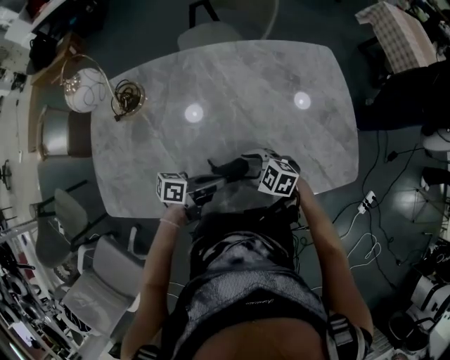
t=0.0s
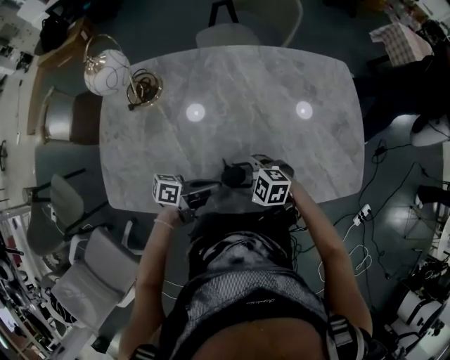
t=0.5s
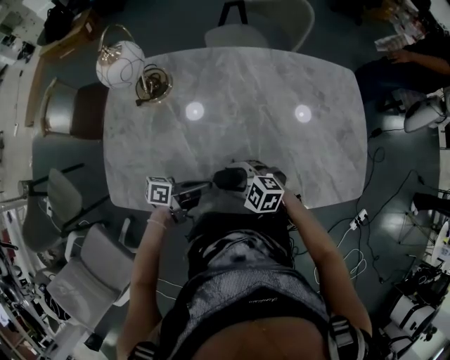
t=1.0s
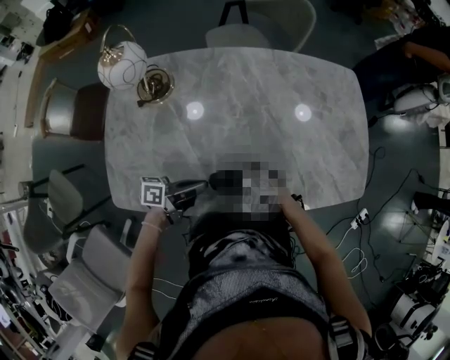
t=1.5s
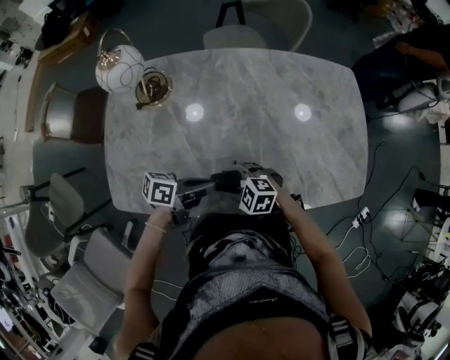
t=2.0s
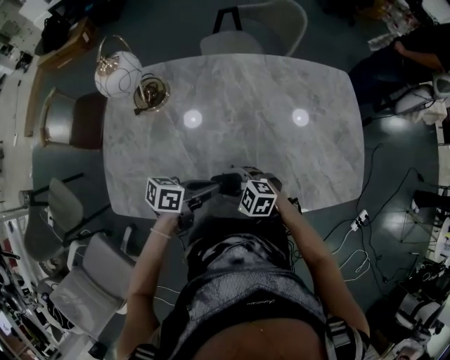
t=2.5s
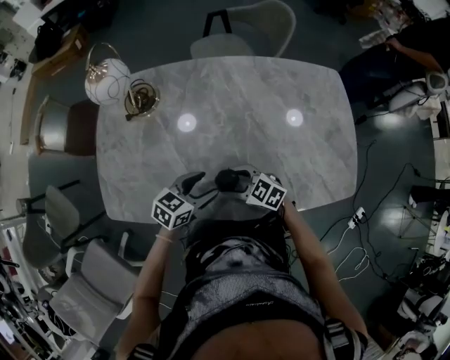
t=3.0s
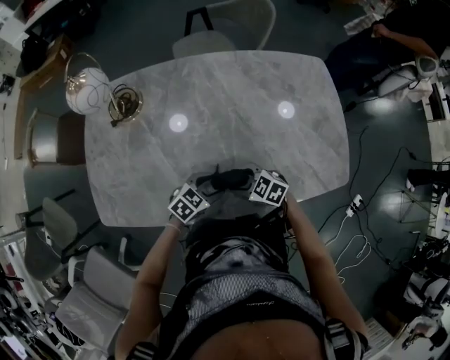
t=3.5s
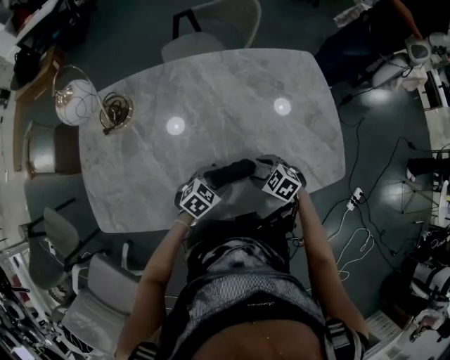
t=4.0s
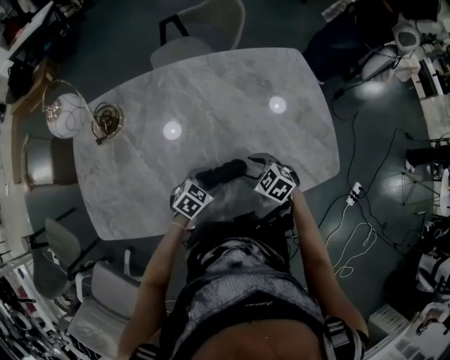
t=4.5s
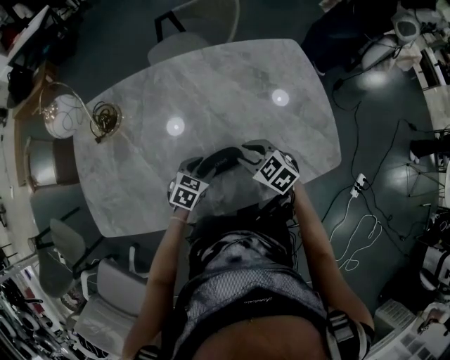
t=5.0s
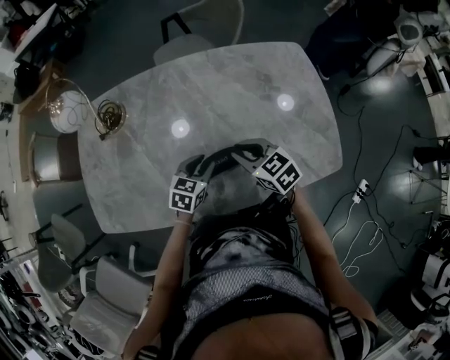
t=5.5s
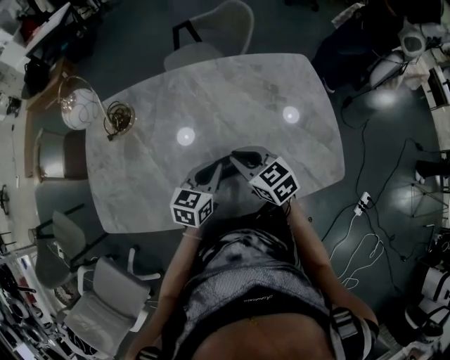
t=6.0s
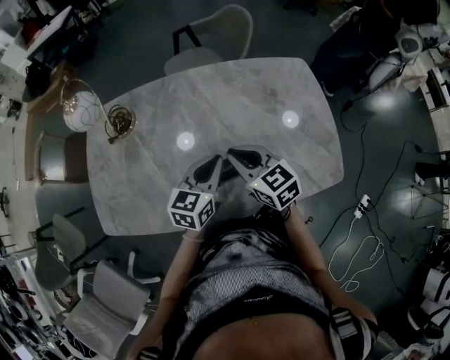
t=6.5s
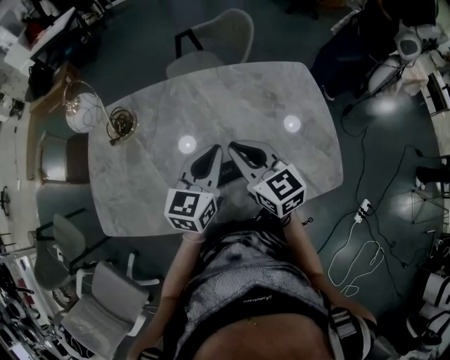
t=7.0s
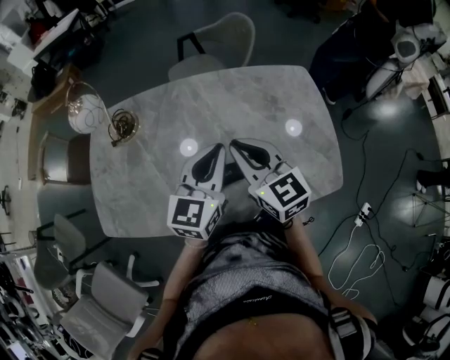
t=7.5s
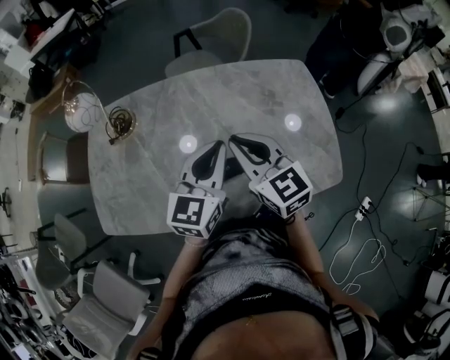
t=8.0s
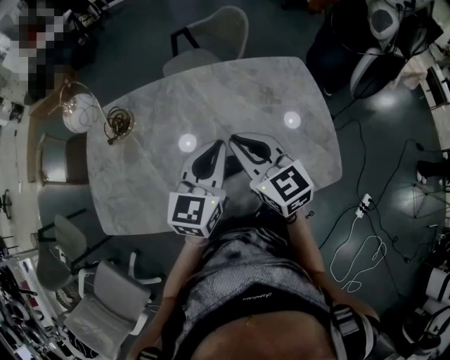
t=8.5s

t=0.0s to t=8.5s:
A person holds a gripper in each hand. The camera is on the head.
t=0.0s to t=2.0s: The left gripper moves approximately 10 cm. The right gripper changes place by about 15 cm.
t=2.0s to t=4.0s: The left gripper moves some 15 cm, rolls clockwise, seen from behind, by about 50 degrees, and opens. Meanwhile the right gripper changes place by about 20 cm, and changes its angle by approximately 30 degrees.
t=4.0s to t=6.5s: Both grippers move upward, some 20 cm. The right gripper tilts its fingers roughly 30 degrees upward, and closes its fingers. Meanwhile the left gripper turns by approximately 40 degrees, and closes its fingers.
t=6.5s to t=8.5s: Both grippers move upward, about 10 cm.

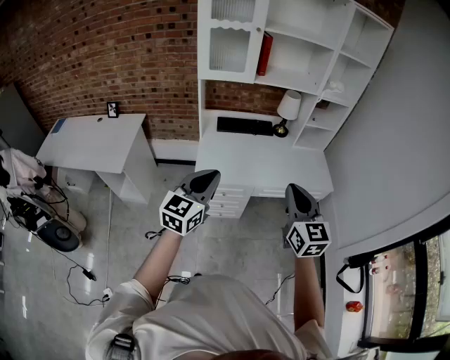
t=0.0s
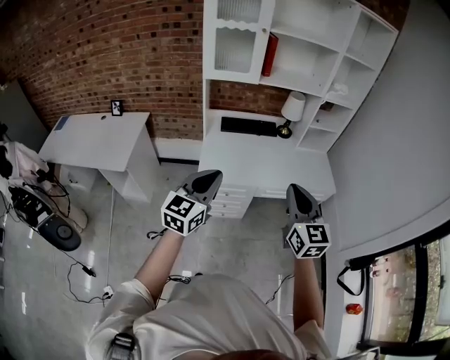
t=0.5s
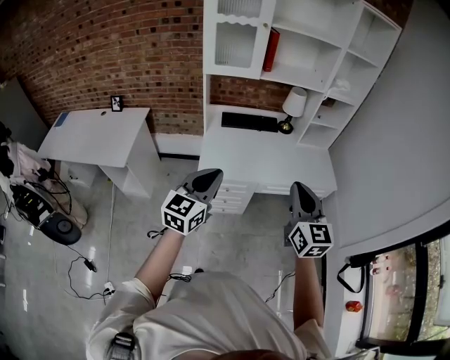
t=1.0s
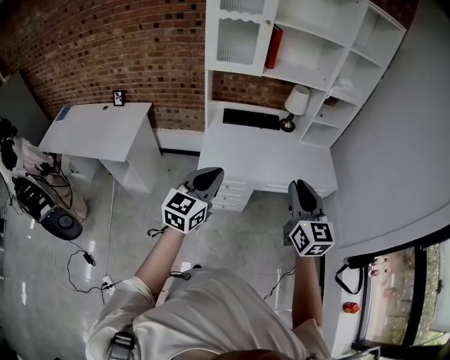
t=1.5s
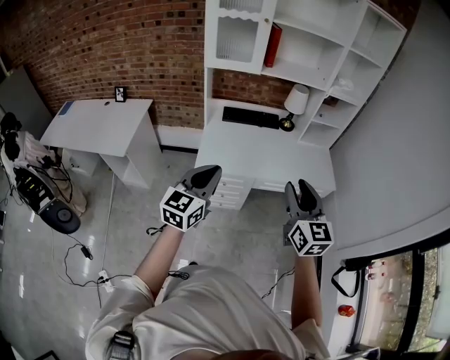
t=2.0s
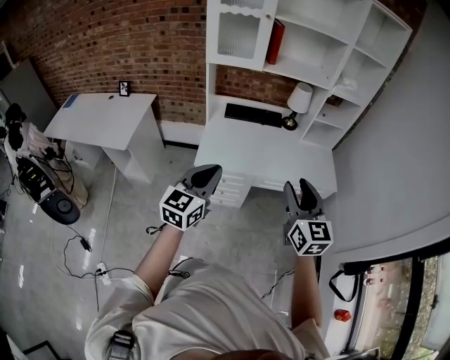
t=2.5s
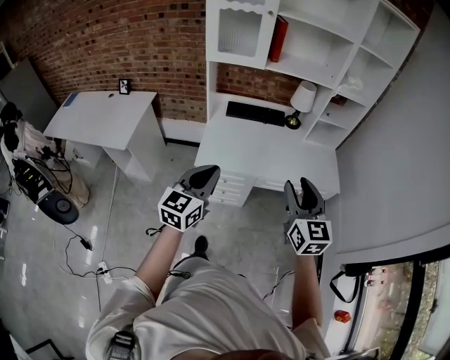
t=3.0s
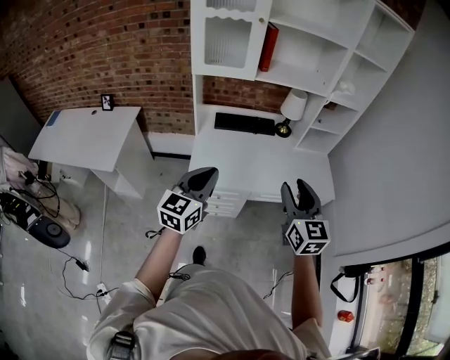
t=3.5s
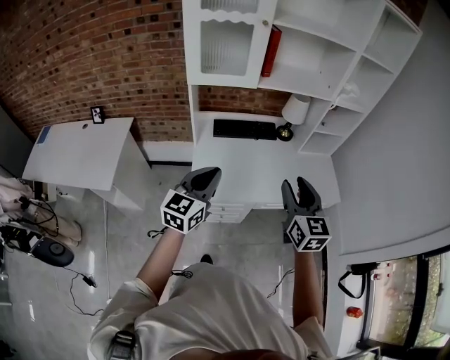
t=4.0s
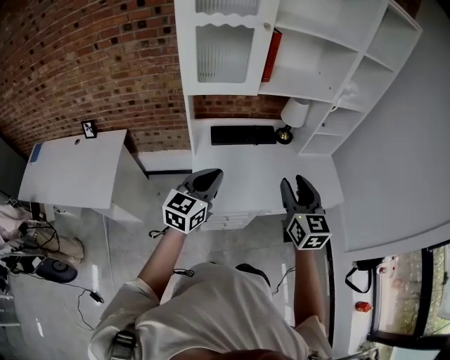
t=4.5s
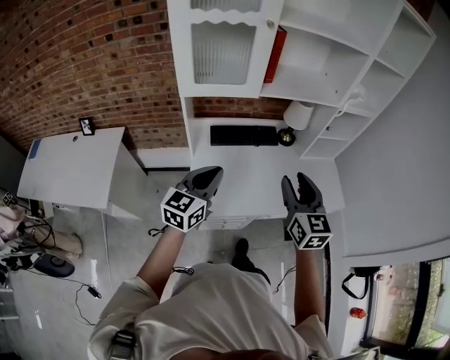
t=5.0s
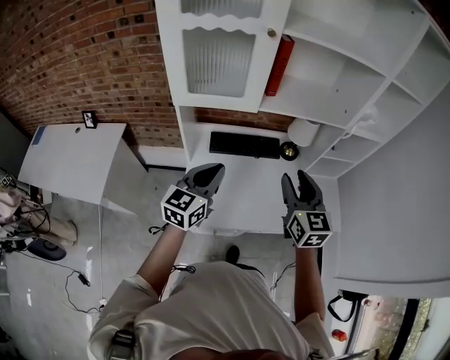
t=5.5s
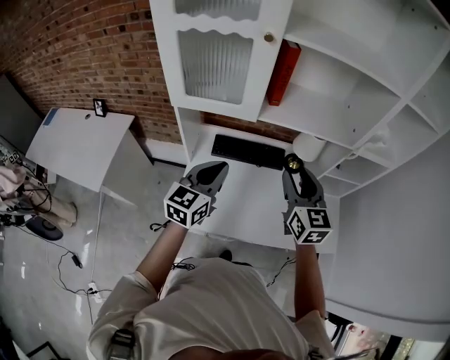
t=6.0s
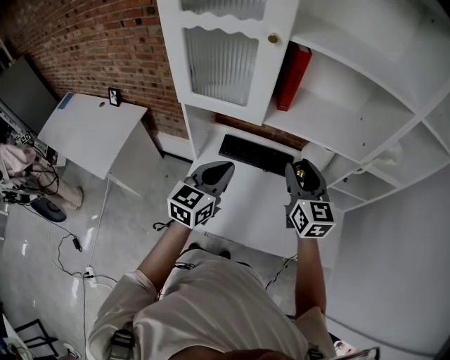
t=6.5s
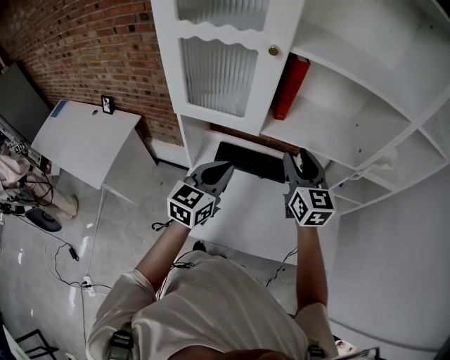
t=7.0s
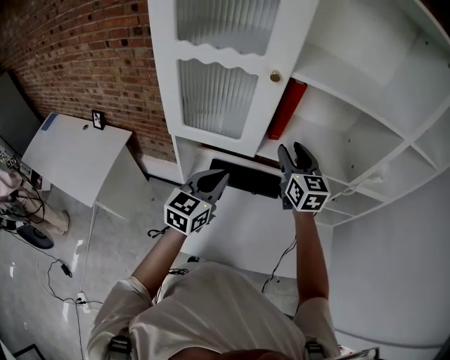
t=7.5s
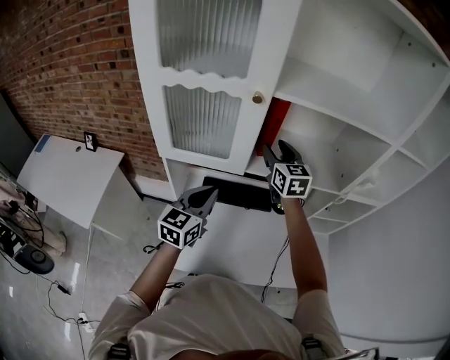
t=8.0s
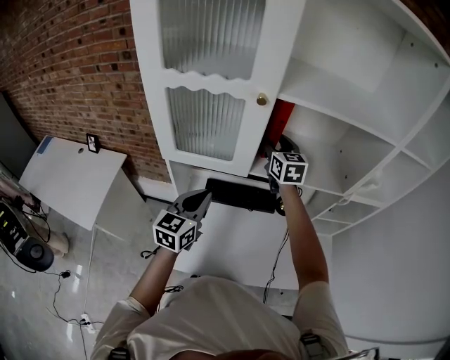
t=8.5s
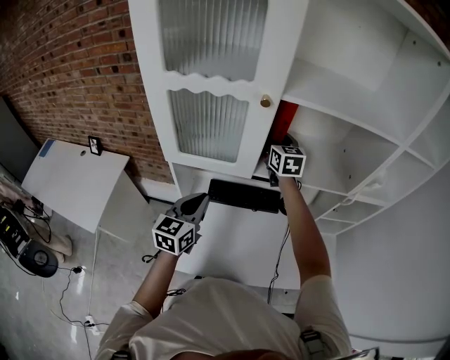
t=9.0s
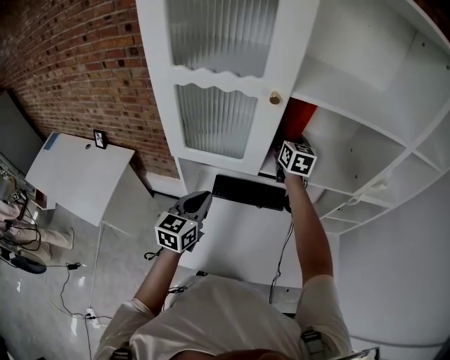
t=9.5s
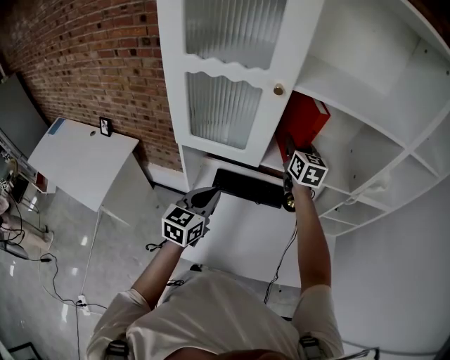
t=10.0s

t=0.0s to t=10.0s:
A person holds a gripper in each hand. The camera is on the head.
t=0.0s to t=2.0s: The right gripper opens its fingers.
t=2.0s to t=4.0s: The two grippers go some 20 cm forward.
t=4.0s to t=6.0s: The two grippers go roughly 30 cm forward.
t=6.0s to t=8.0s: The right gripper heads forward, covering approximately 25 cm. The left gripper heads forward, covering about 10 cm.
t=8.0s to t=10.0s: The right gripper moves approximately 10 cm forward and comes back.

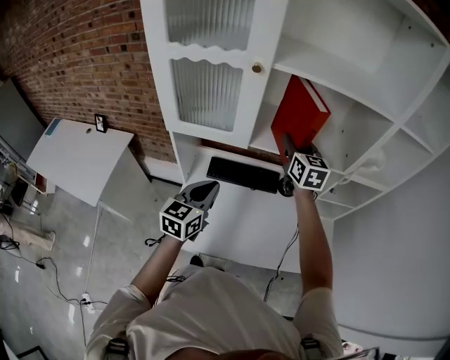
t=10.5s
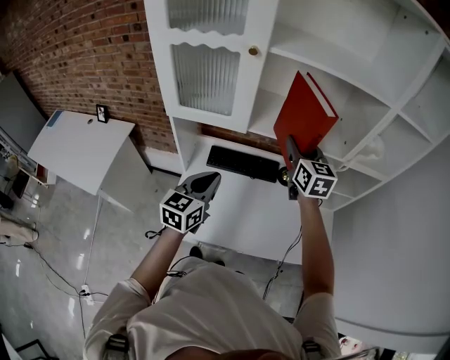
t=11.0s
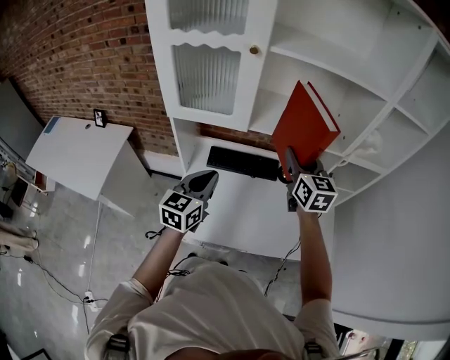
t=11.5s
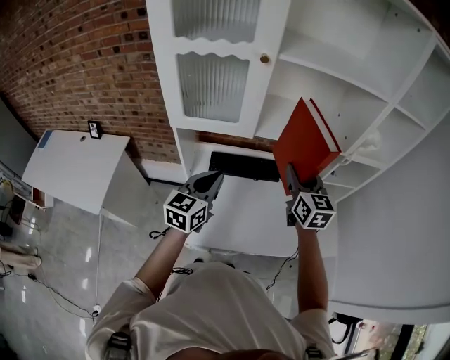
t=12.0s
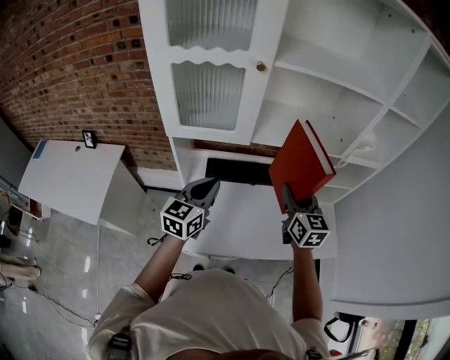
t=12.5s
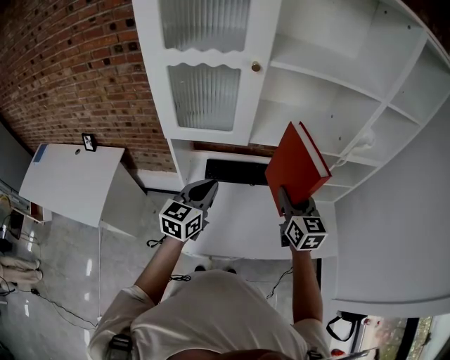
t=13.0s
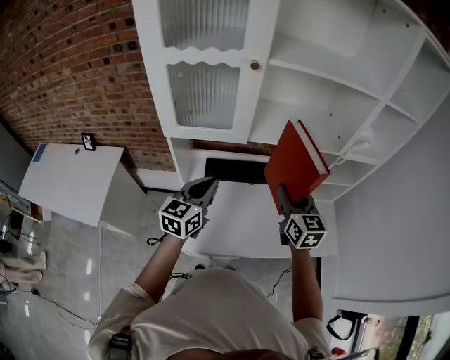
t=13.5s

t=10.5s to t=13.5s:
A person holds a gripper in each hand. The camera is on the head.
t=10.5s to t=12.0s: The right gripper travels backward by roughly 15 cm.
t=12.0s to t=13.5s: The right gripper moves some 5 cm.

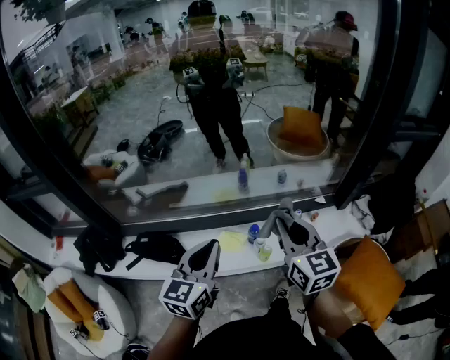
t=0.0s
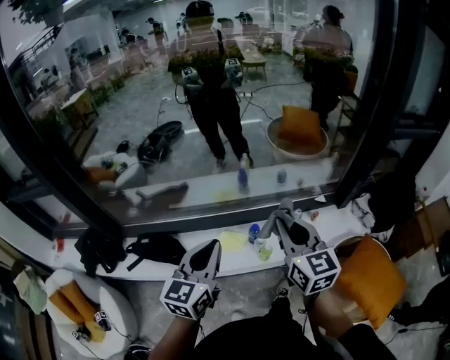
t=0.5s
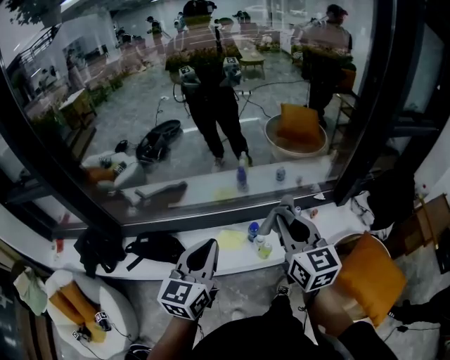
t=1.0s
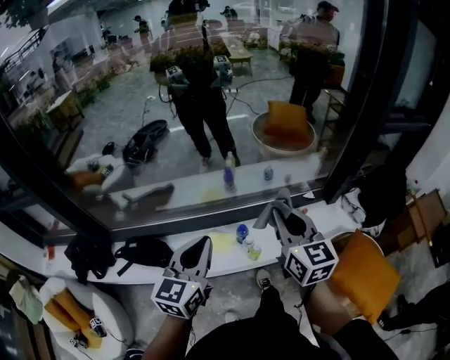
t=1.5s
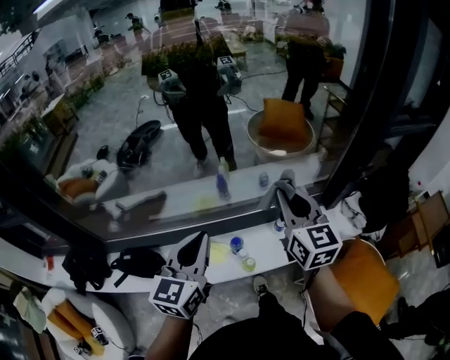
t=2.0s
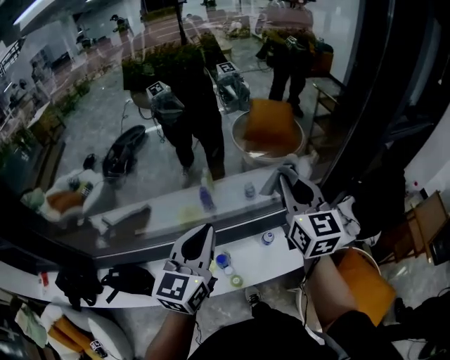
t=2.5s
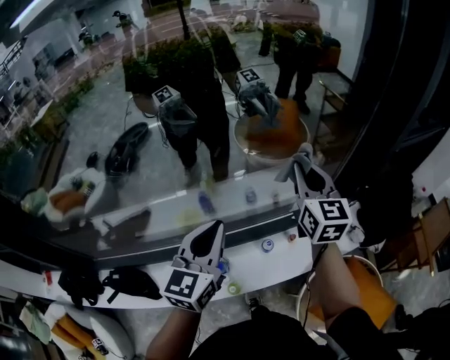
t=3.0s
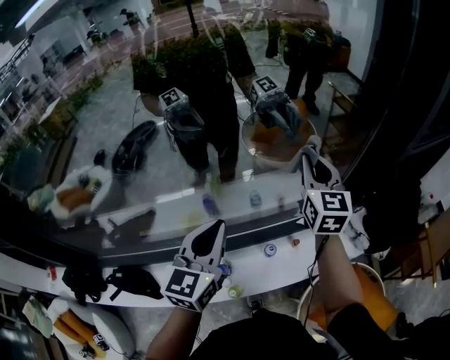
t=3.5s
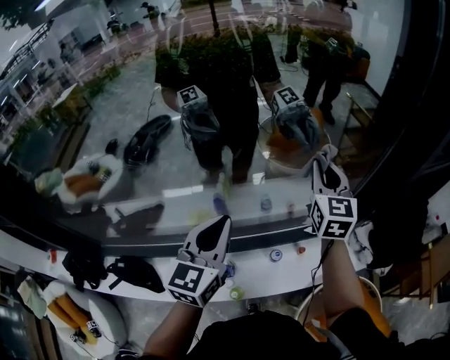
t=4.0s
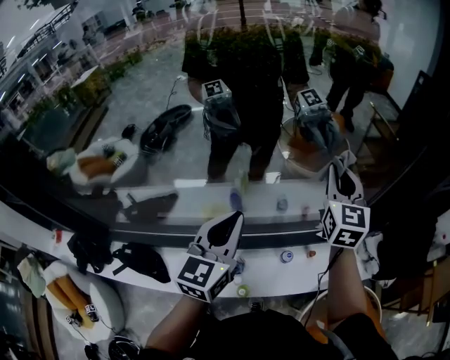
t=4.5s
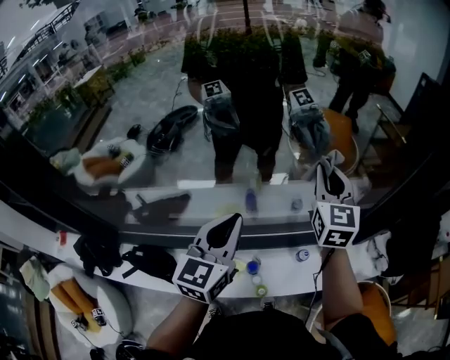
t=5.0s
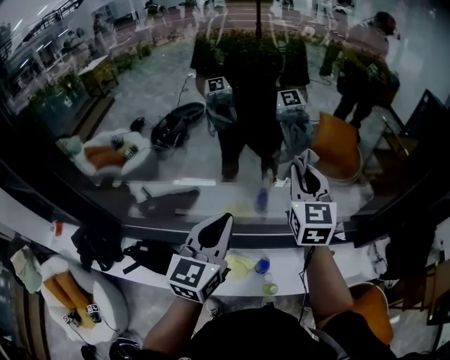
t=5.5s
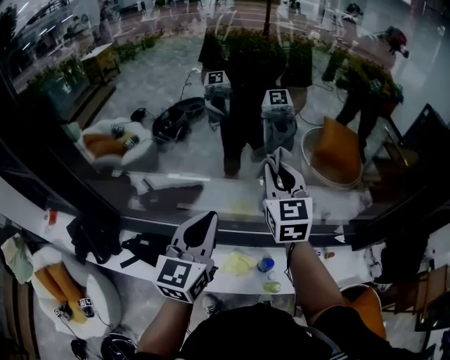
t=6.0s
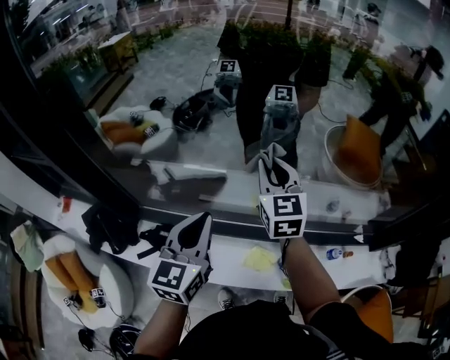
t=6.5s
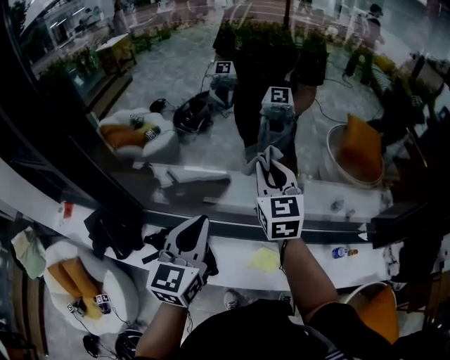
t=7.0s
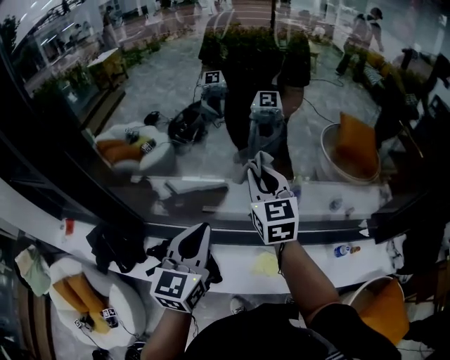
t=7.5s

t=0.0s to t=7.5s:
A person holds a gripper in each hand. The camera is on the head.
t=0.0s to t=2.0s: The two grippers go approximately 15 cm forward and to the right.
t=2.0s to t=4.0s: Both grippers travel together forward and to the right, some 30 cm.
t=4.0s to t=5.5s: Both grippers travel together to the left, approximately 30 cm.
t=5.5s to t=7.5s: Both grippers move to the left, about 30 cm.
